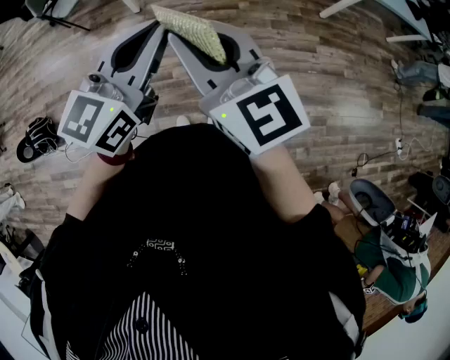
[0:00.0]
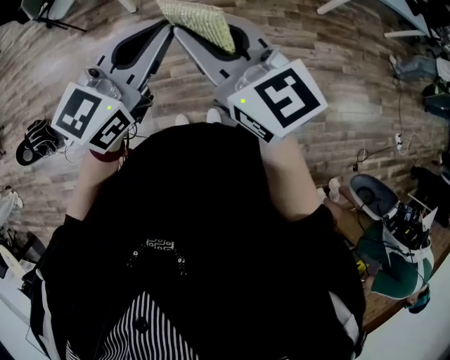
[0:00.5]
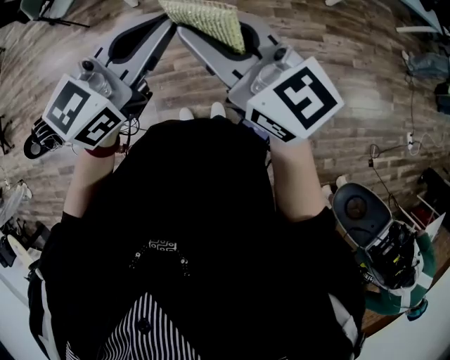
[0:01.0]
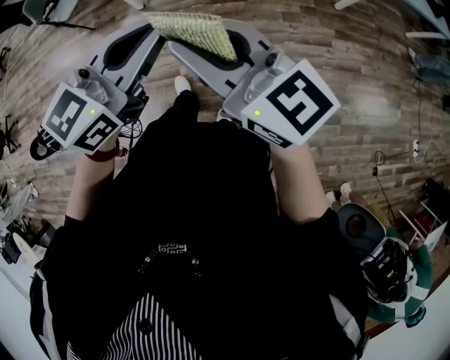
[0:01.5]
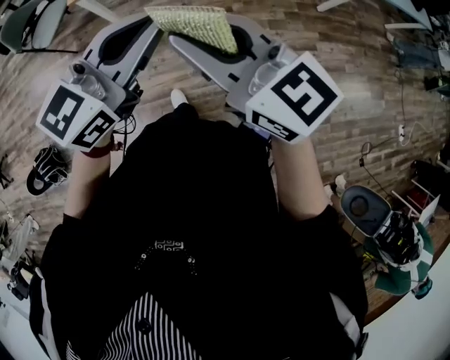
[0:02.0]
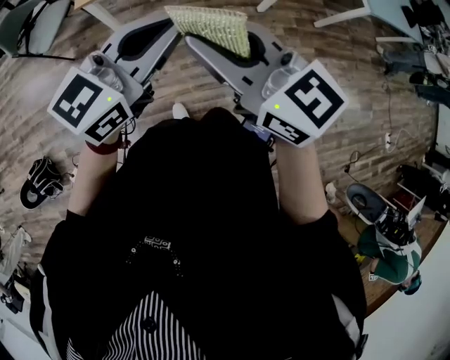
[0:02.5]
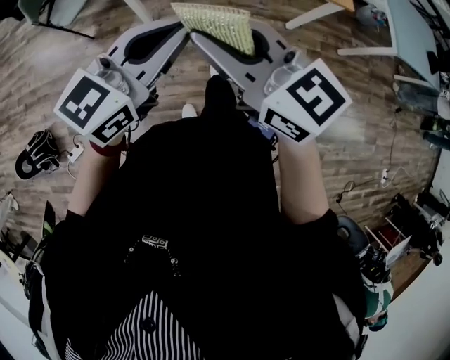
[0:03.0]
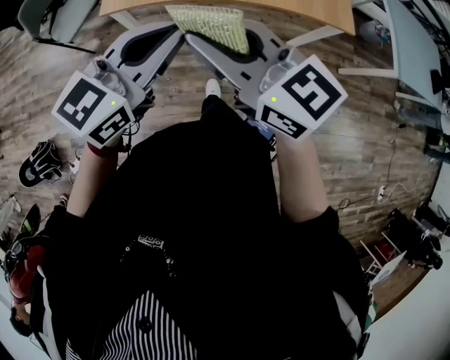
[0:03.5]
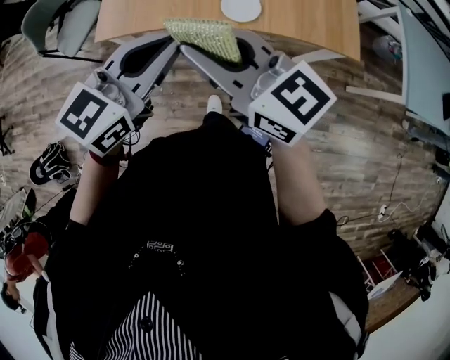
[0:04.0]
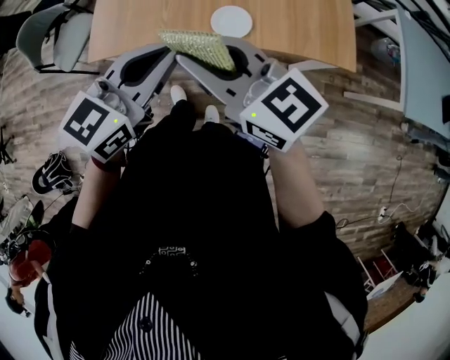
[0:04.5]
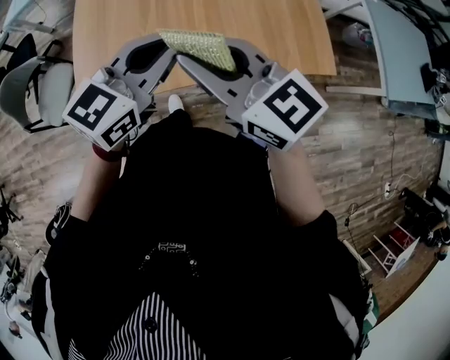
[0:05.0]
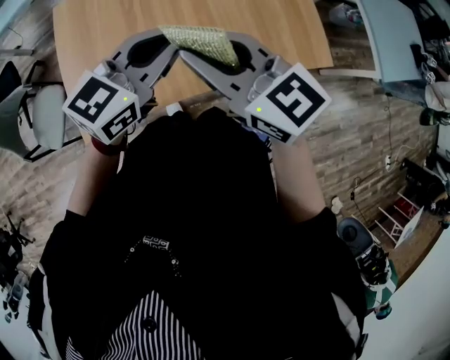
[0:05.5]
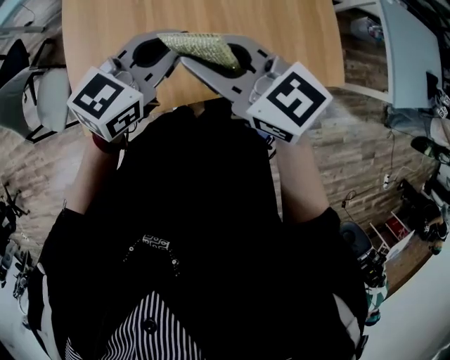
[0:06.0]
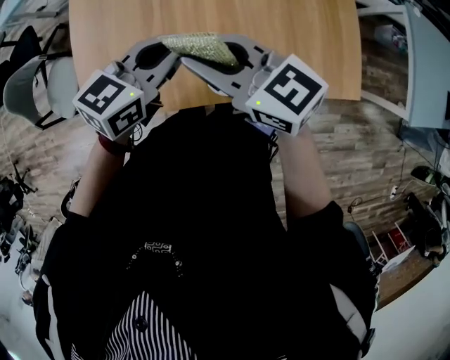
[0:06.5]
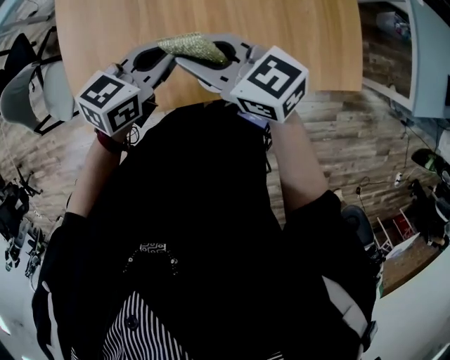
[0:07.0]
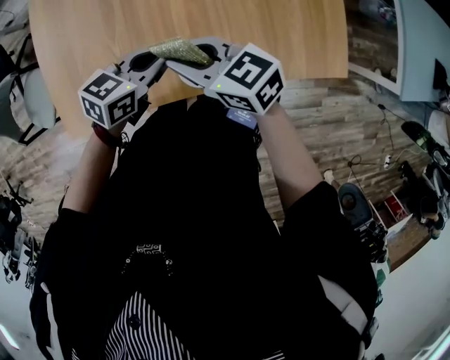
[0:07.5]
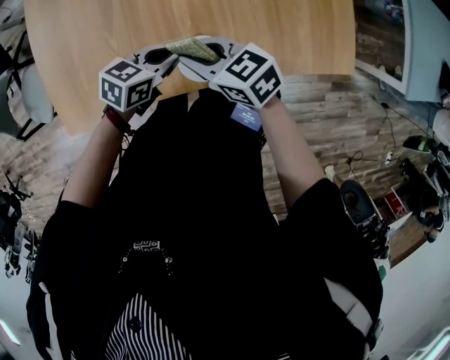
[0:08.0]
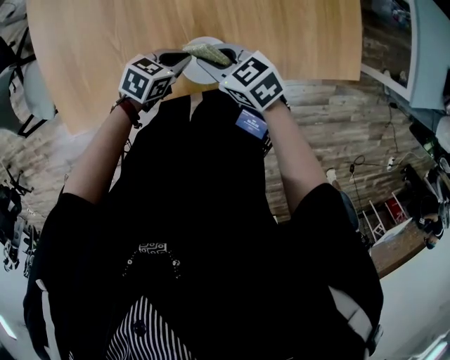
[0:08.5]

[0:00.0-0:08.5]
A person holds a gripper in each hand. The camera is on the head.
0:00.0 to 0:02.0: Both grippers move forward, about 20 cm.
0:02.0 to 0:04.0: Both grippers travel together forward, roughly 40 cm.
0:04.0 to 0:06.5: The two grippers go roughly 35 cm forward.
0:06.5 to 0:08.5: Both grippers move downward, approximately 30 cm. The right gripper tilts its fingers about 30 degrees downward, while the left gripper rotates roughly 30 degrees.

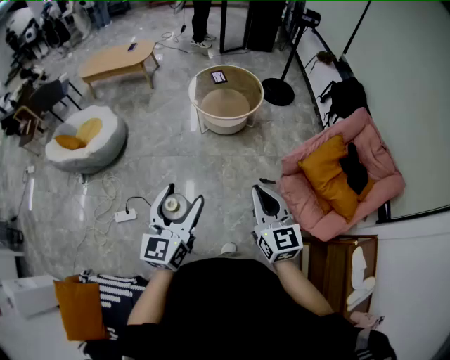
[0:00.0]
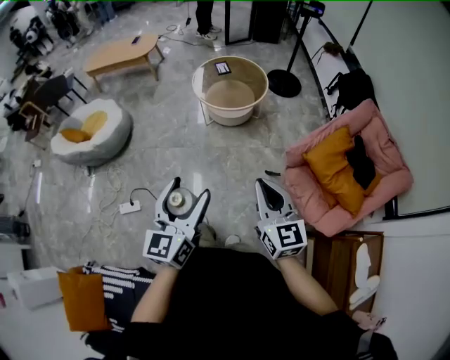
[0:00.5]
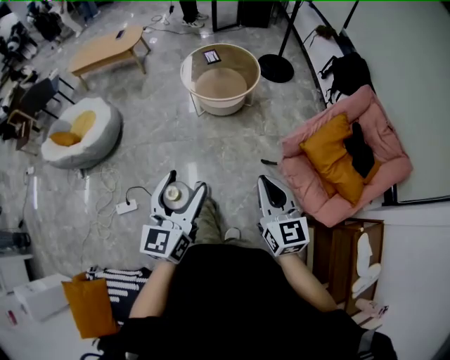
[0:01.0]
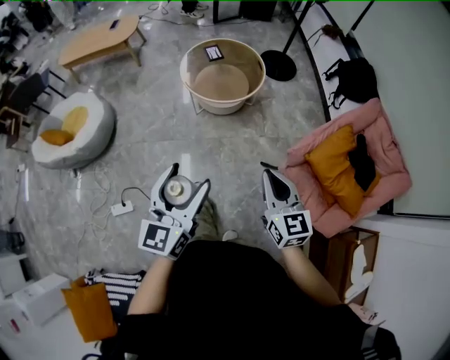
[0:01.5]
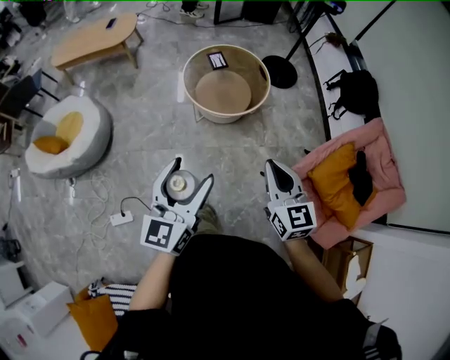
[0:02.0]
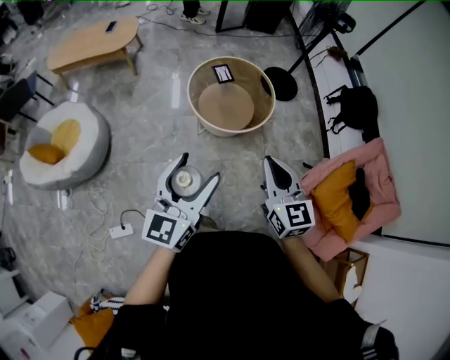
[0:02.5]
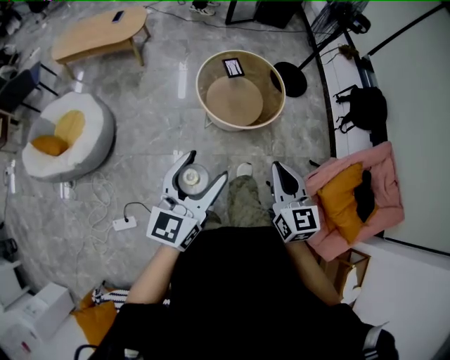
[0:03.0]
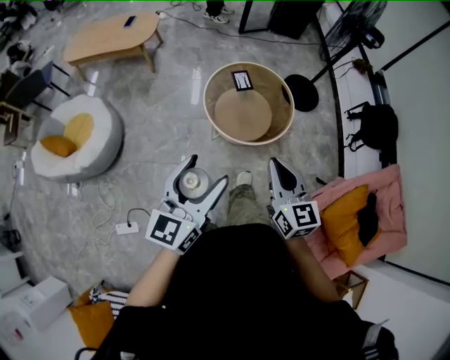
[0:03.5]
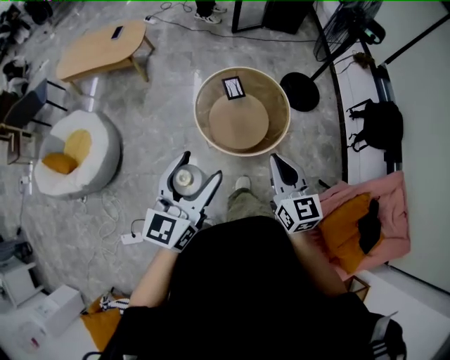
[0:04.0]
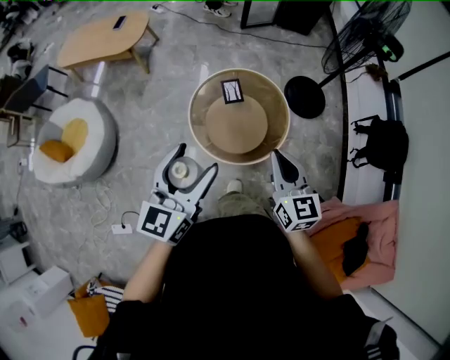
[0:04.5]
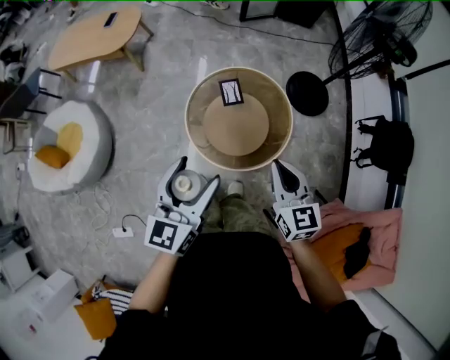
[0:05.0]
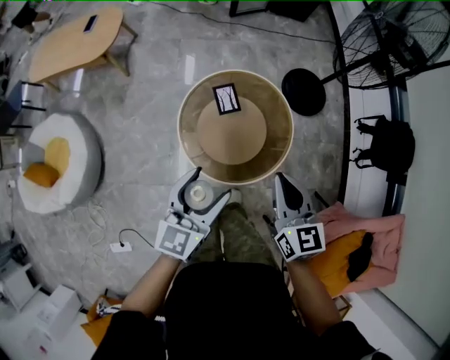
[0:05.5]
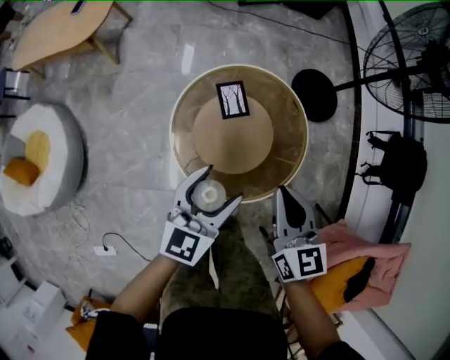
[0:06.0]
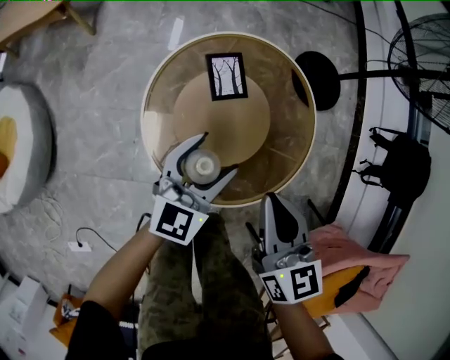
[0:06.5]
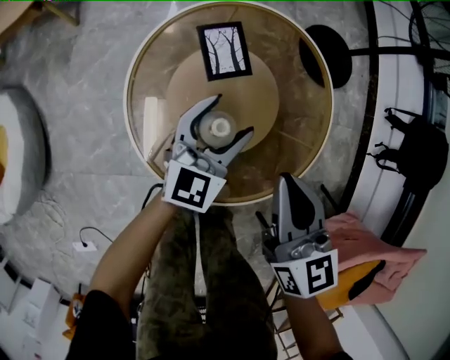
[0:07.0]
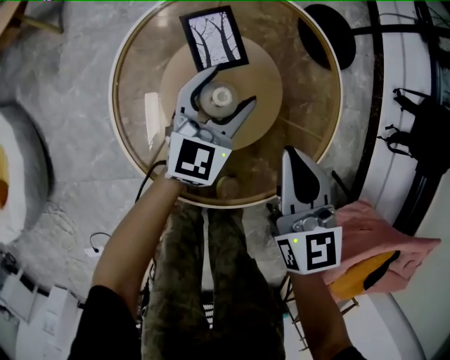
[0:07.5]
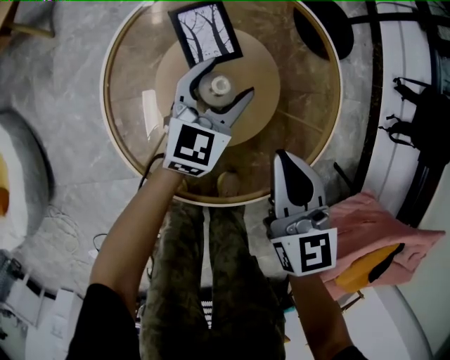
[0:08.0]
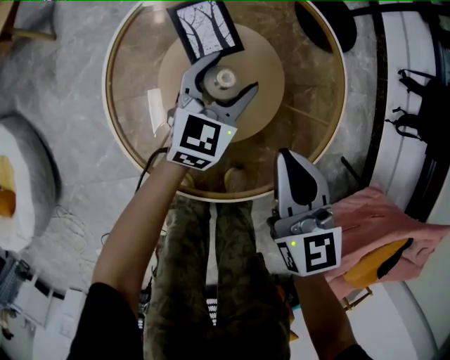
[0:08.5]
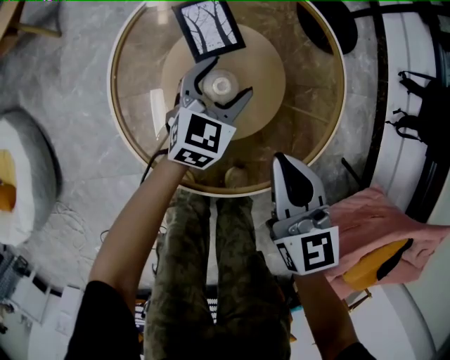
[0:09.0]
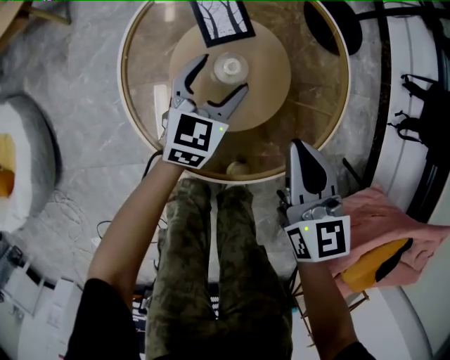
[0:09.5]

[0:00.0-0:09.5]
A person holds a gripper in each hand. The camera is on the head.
0:00.0 to 0:02.0: Both grippers move forward, approximately 35 cm.
0:02.0 to 0:04.0: The grippers both shift forward by some 35 cm.
0:04.0 to 0:05.5: The grippers both shift forward and downward by approximately 30 cm.
0:05.5 to 0:07.5: The right gripper shifts roughly 40 cm downward. The left gripper is displaced downward and forward by some 60 cm.
0:07.5 to 0:09.5: Both grippers move backward, about 5 cm.

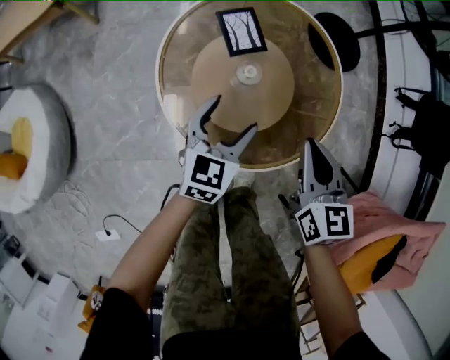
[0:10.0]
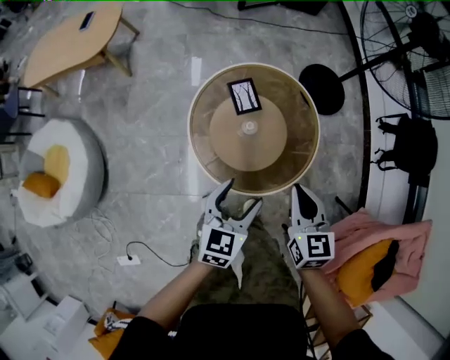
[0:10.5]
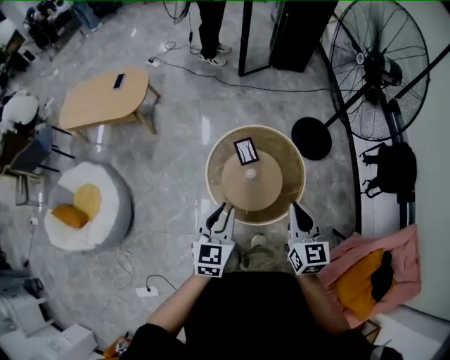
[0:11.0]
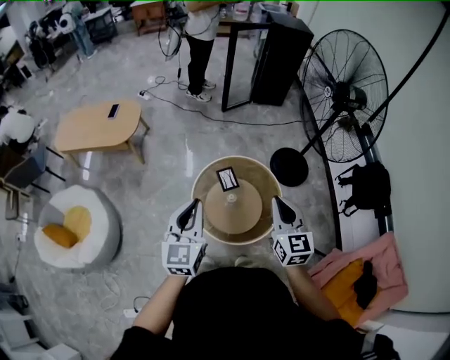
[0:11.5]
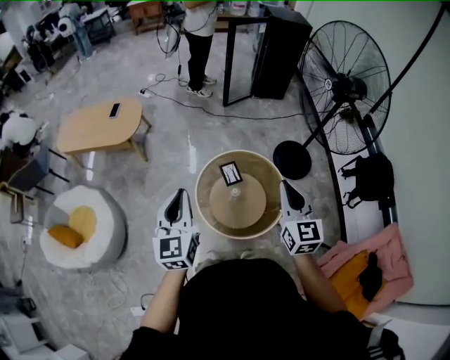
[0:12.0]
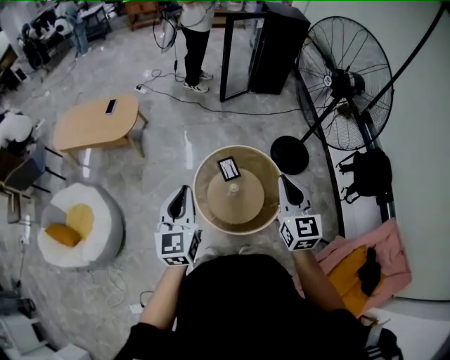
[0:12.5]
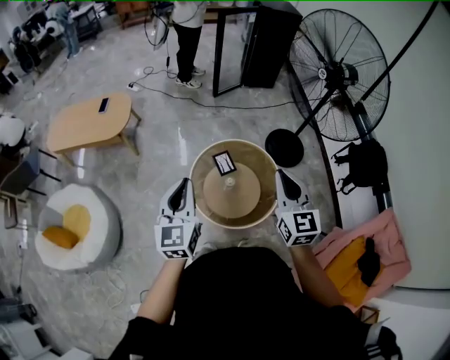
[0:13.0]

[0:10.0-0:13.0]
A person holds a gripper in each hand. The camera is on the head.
0:10.0 to 0:11.5: Both grippers move upward, approximately 60 cm. The right gripper rotates roughly 20 degrees. The left gripper turns by about 30 degrees, and closes.
0:11.5 to 0:13.0: The grippers make only small movements.

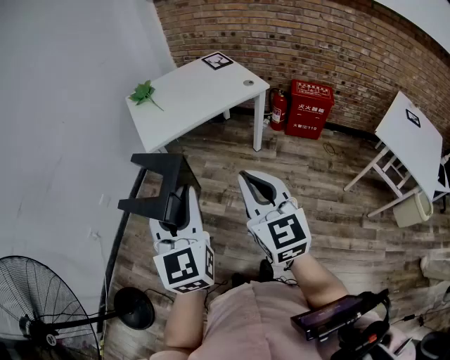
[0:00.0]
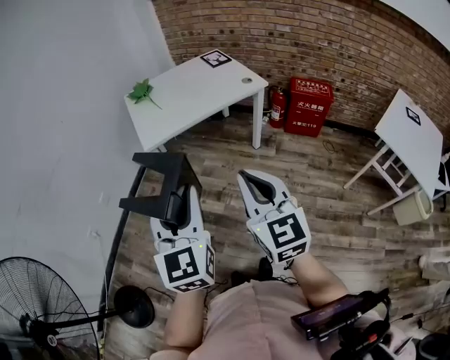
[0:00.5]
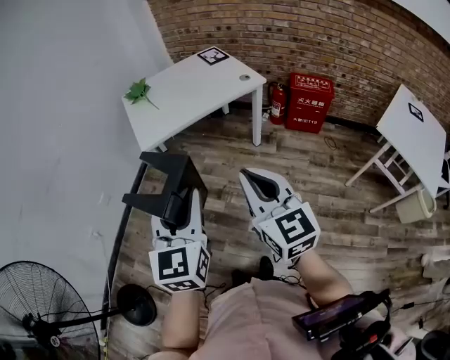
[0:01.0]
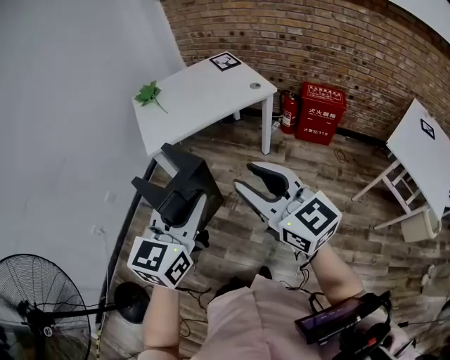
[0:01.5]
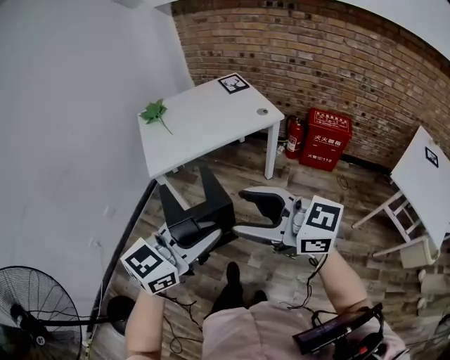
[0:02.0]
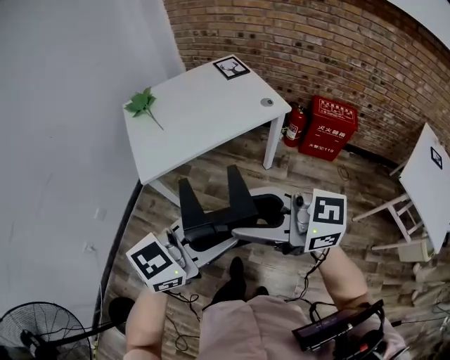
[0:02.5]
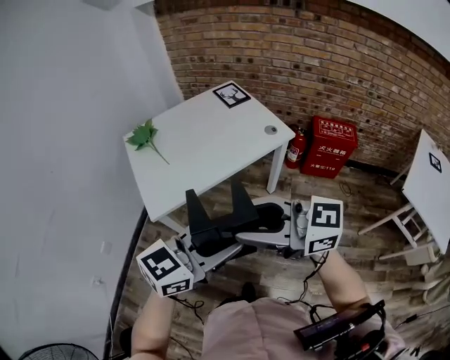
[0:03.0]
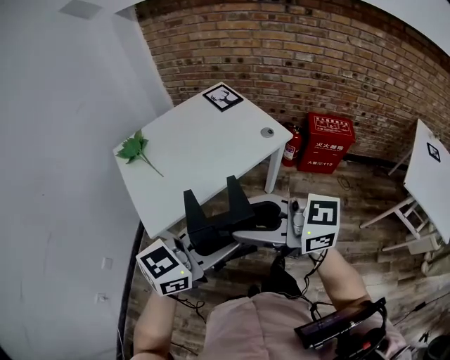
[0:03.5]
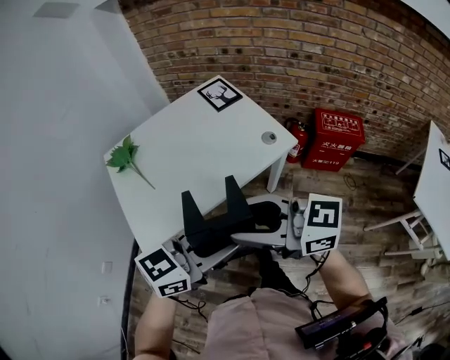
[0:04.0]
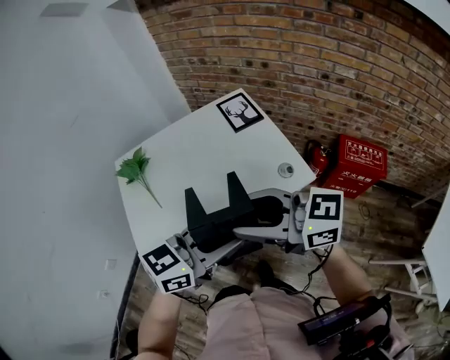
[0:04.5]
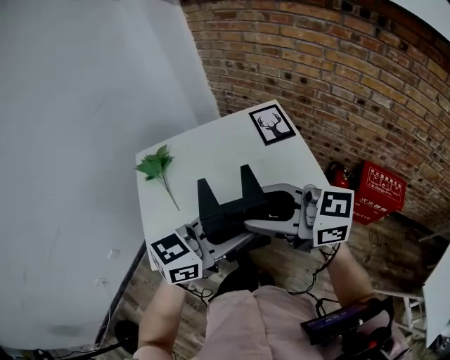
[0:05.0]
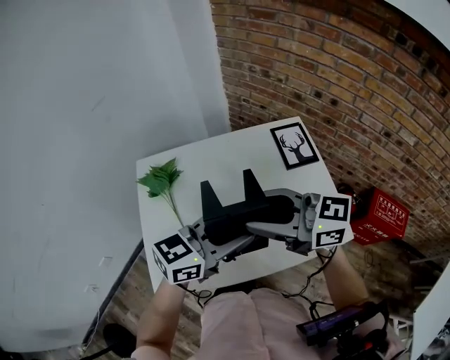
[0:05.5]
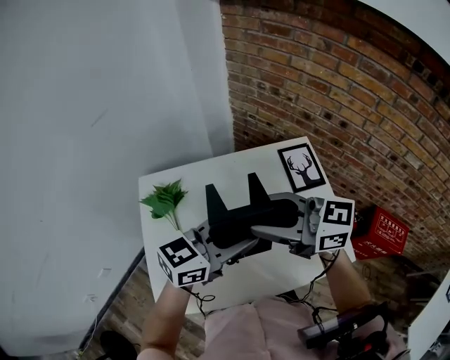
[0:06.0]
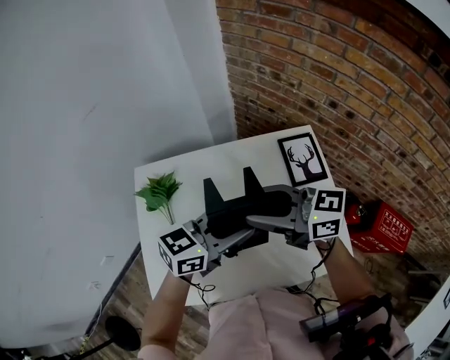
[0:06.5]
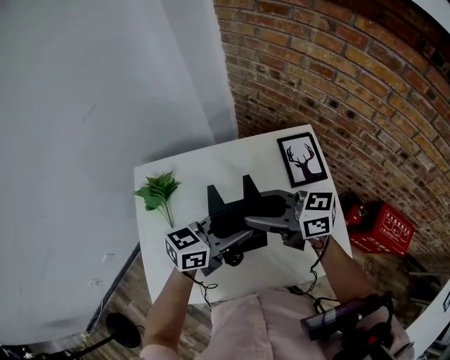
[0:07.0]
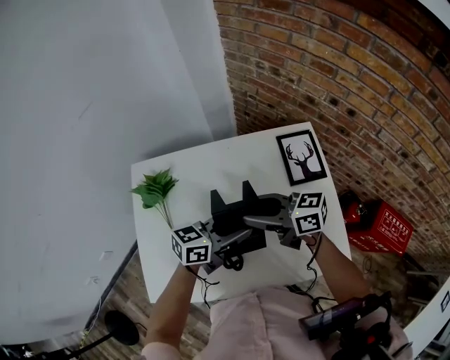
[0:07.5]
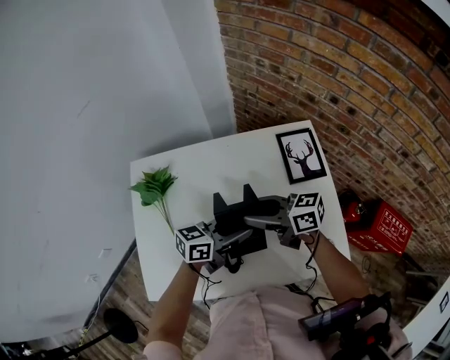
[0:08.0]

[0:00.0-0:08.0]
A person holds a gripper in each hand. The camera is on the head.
0:00.0 to 0:02.0: The left gripper goes about 15 cm to the right, and turns by about 50 degrees; the right gripper changes place by roughly 5 cm, swivels approximately 50 degrees, and opens.
0:02.0 to 0:04.0: The right gripper moves approximately 35 cm. Meanwhile the left gripper moves some 35 cm, and turns by approximately 20 degrees.
0:04.0 to 0:06.0: The pair of grippers is taken about 40 cm.
0:06.0 to 0:08.0: Both grippers travel together downward, about 15 cm. The right gripper changes its angle by about 30 degrees. The left gripper rotates roughly 20 degrees.
